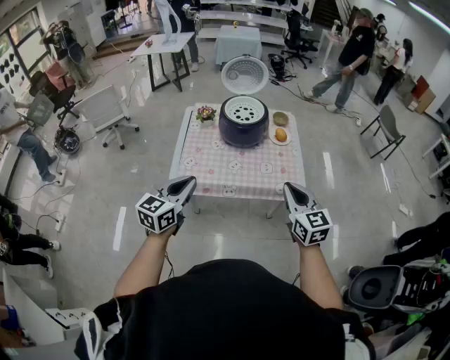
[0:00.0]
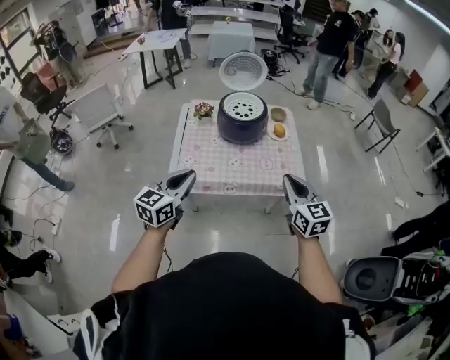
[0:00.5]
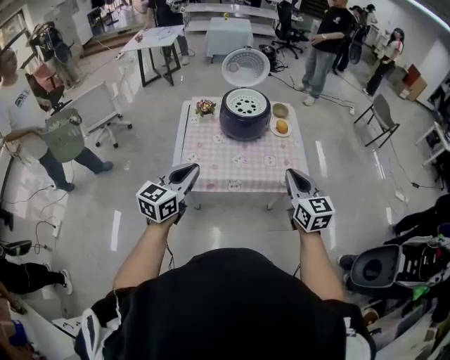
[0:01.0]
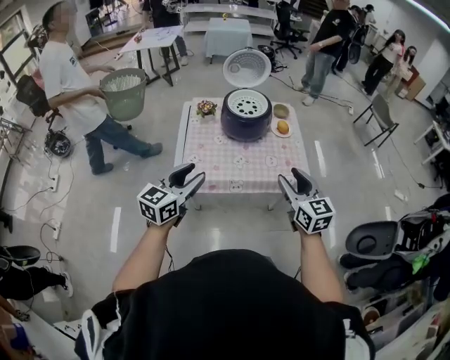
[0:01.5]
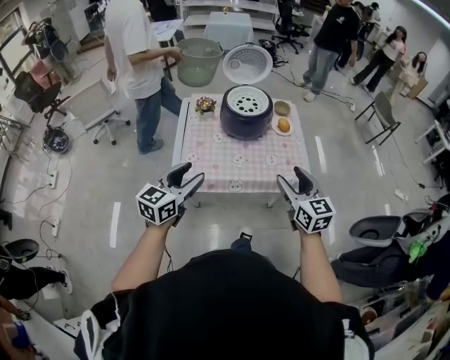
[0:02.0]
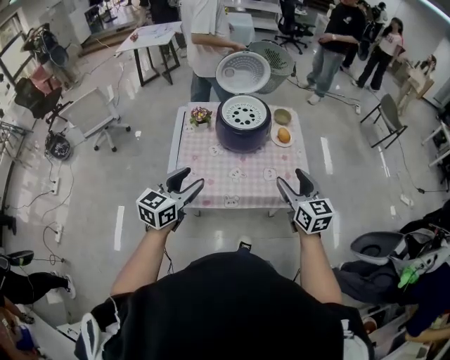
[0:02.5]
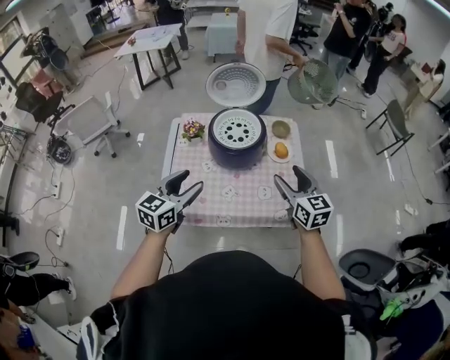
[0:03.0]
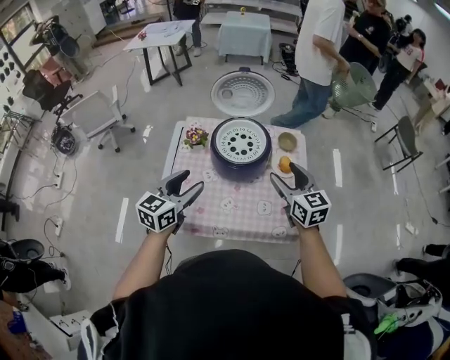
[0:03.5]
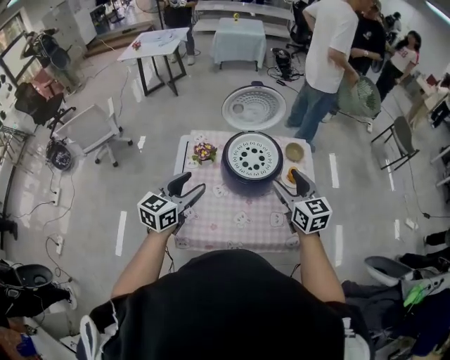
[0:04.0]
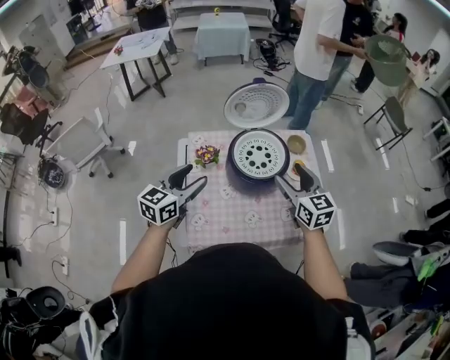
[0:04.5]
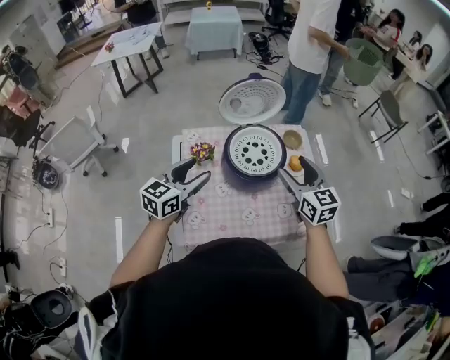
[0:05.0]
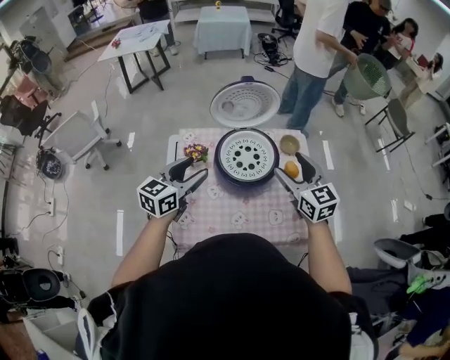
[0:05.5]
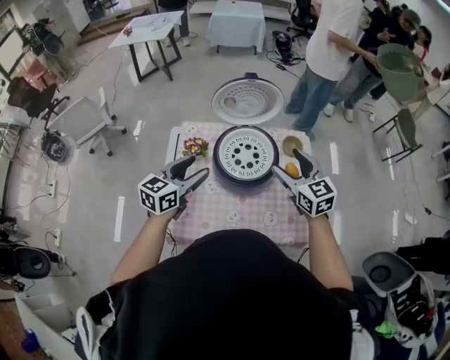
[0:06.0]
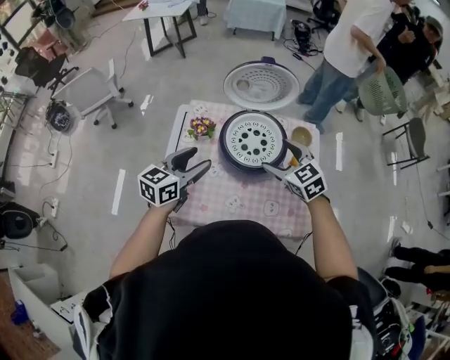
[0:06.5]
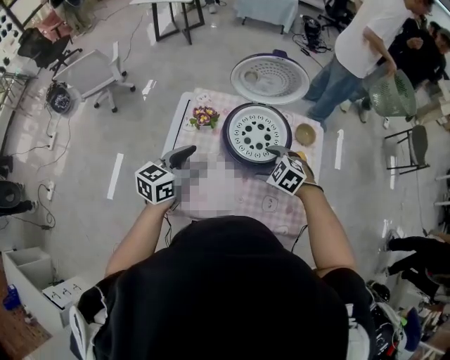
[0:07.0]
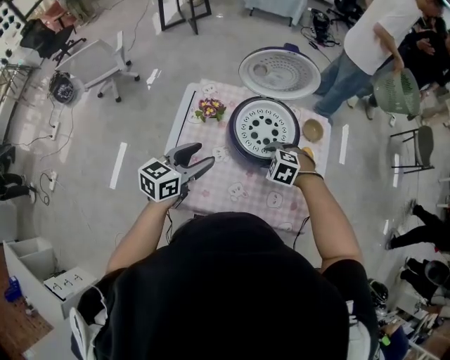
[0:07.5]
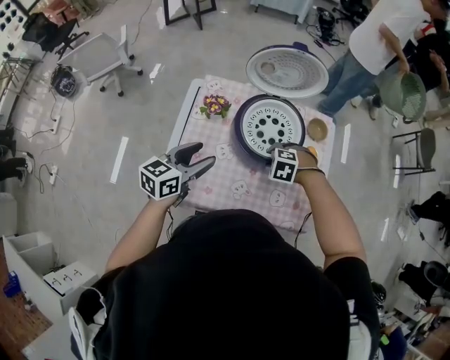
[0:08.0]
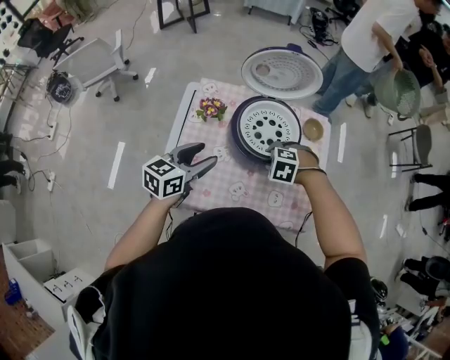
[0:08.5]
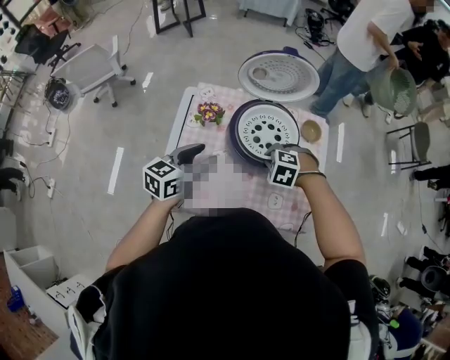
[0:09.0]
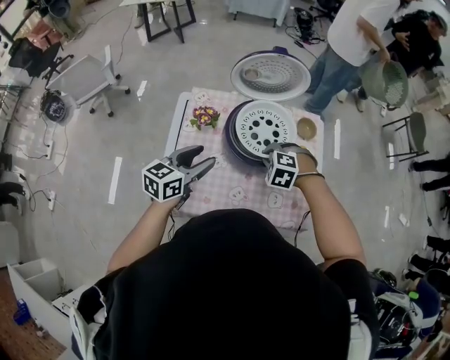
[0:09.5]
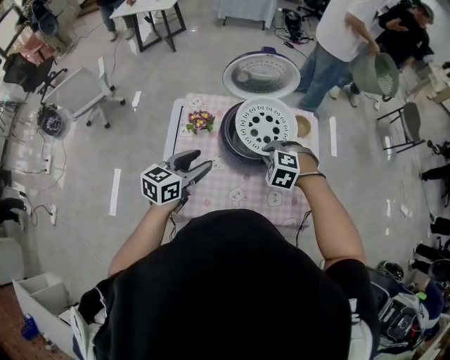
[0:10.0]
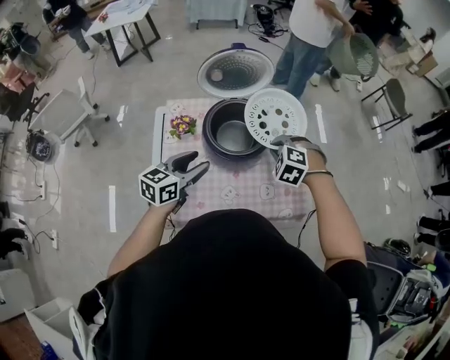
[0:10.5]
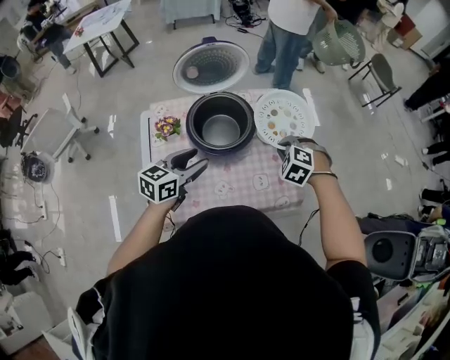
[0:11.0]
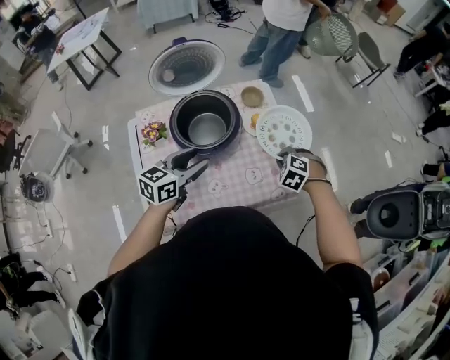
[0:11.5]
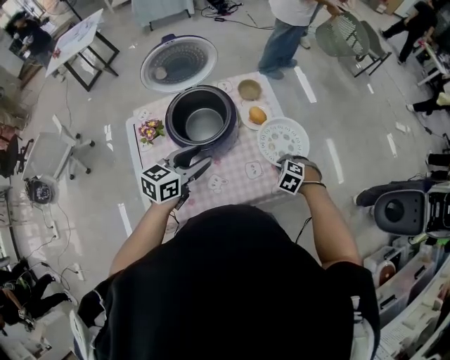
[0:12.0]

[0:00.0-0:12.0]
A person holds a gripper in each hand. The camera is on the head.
0:00.0 to 0:02.0: The two grippers go some 5 cm to the left. The right gripper opens. Meanwhile the left gripper opens up.
0:02.0 to 0:04.0: Both grippers travel together forward, approximately 30 cm.
0:04.0 to 0:06.0: The grippers both shift forward by roughly 10 cm.
0:06.0 to 0:08.0: The left gripper heads downward, covering approximately 5 cm, while the right gripper shifts approximately 25 cm downward, angles its fingers downward, by roughly 60 degrees, and closes up.
0:08.0 to 0:10.0: The right gripper shifts roughly 10 cm upward, and closes its fingers.
0:10.0 to 0:12.0: The left gripper ends up some 15 cm from where it was, and rotates approximately 20 degrees; the right gripper changes place by about 30 cm, and changes its angle by some 30 degrees.

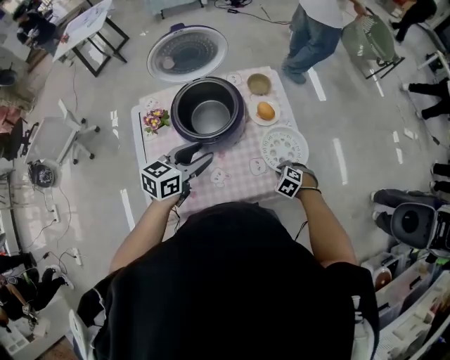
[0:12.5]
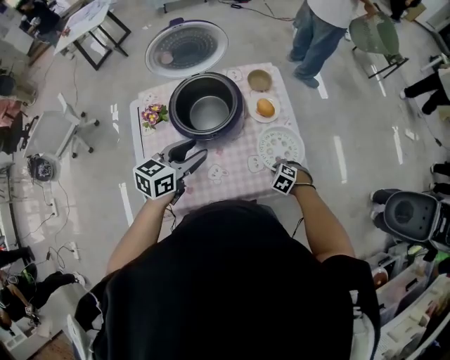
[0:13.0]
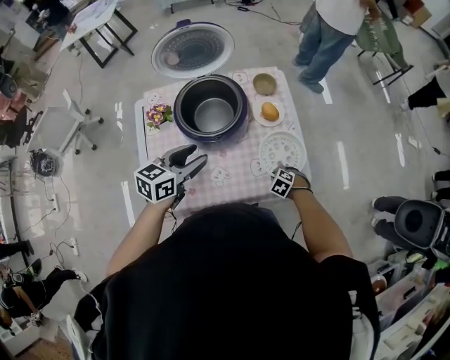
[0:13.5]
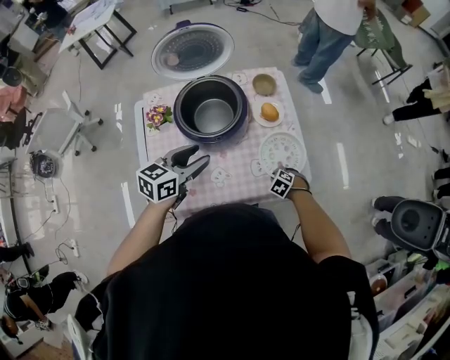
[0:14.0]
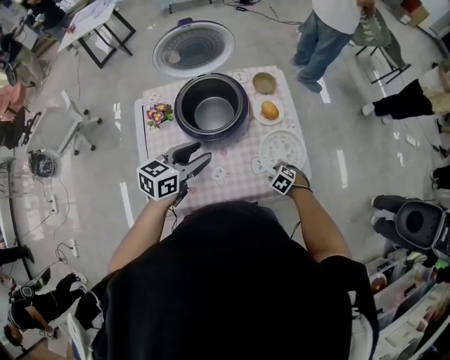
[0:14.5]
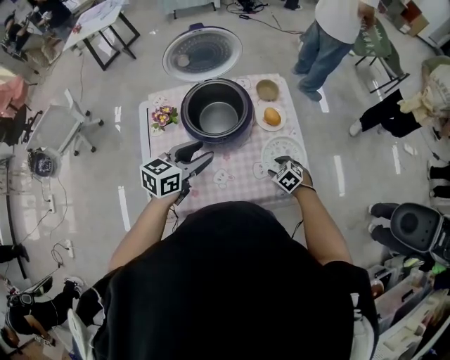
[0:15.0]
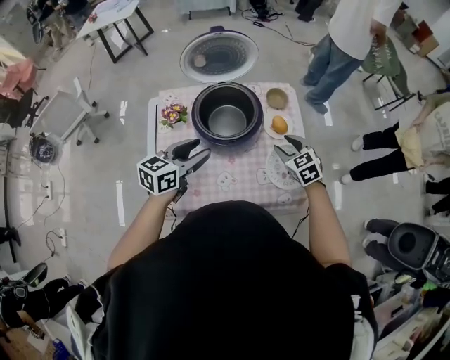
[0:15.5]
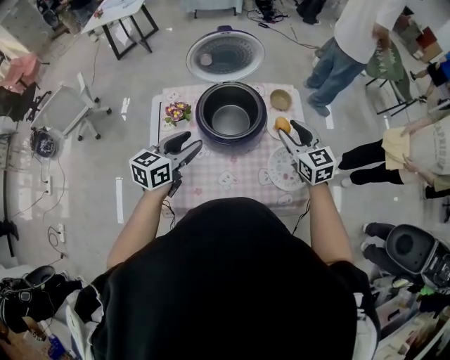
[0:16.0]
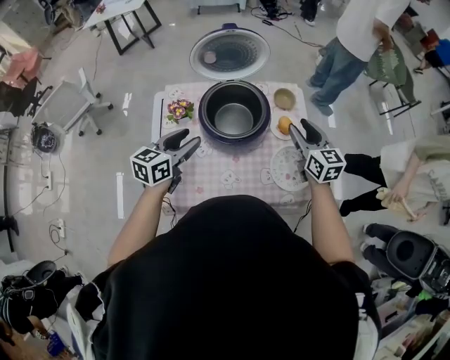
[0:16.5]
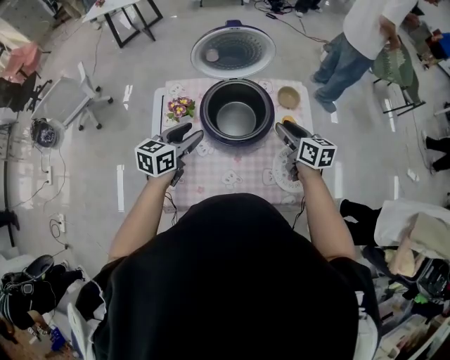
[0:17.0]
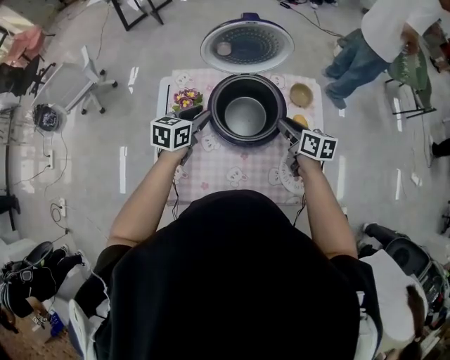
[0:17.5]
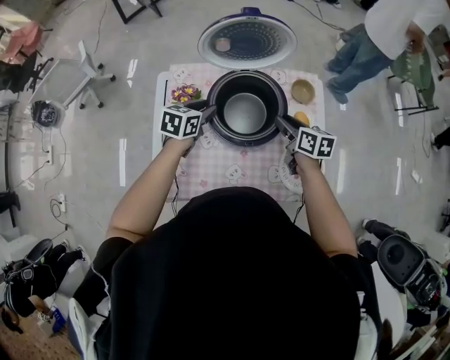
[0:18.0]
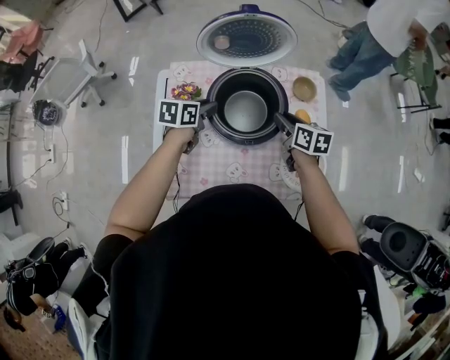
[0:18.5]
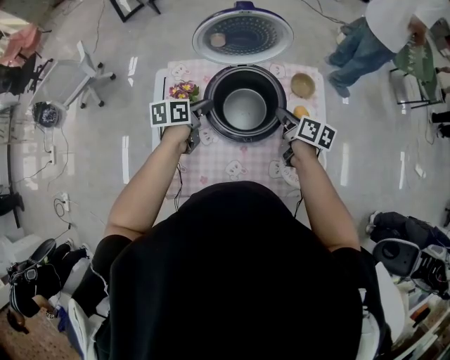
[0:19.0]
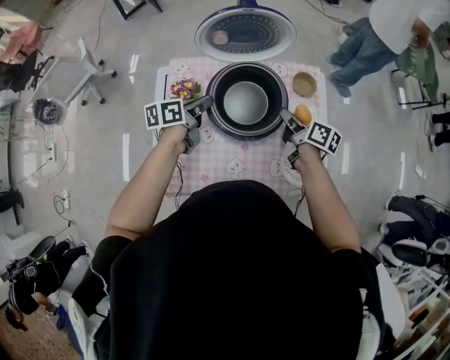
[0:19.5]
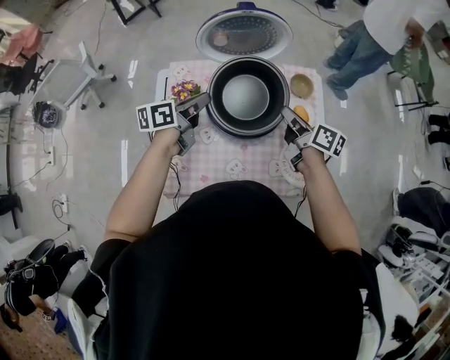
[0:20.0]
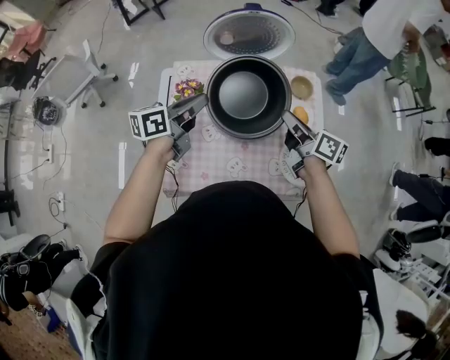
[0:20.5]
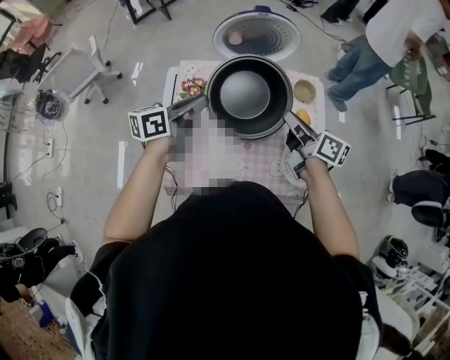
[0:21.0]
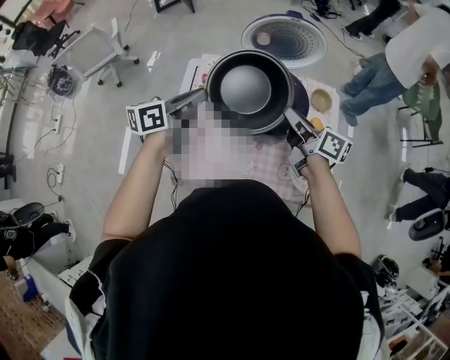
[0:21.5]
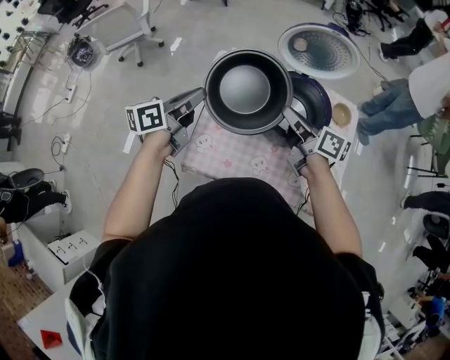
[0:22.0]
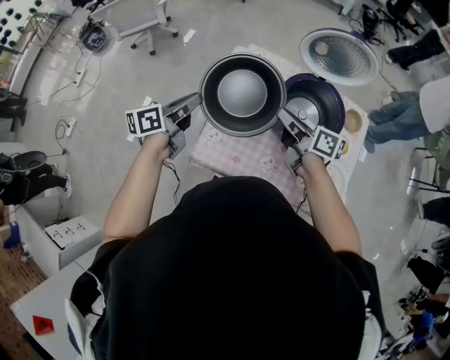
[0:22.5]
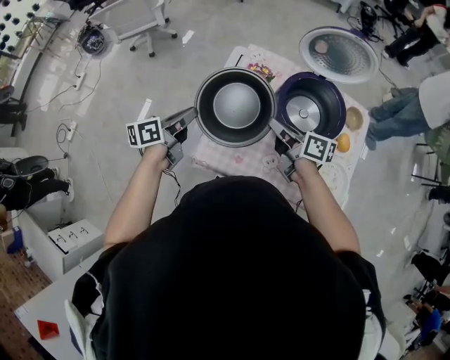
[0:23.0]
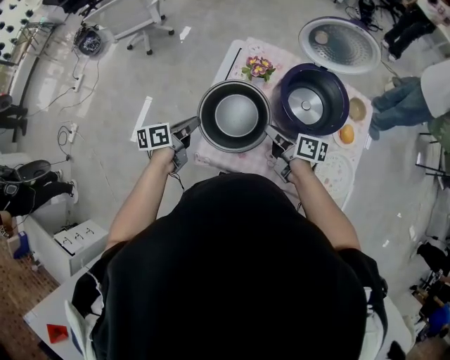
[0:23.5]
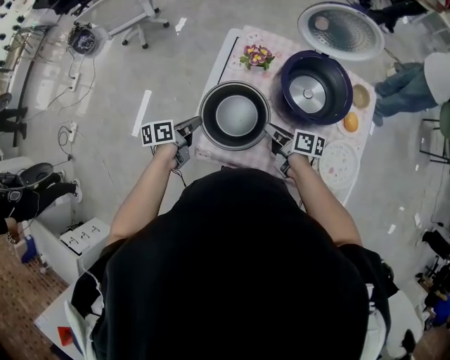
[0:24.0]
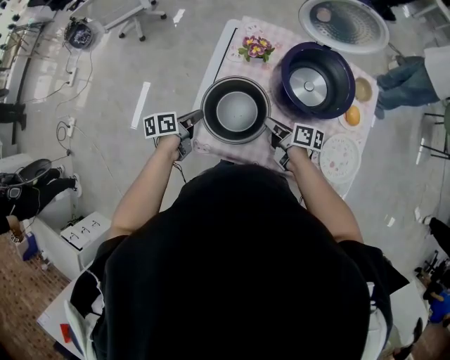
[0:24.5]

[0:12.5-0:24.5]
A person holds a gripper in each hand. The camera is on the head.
0:12.5 to 0:14.5: The right gripper shifts about 5 cm downward, and opens its fingers.
0:14.5 to 0:16.5: The left gripper ends up approximately 10 cm from where it was, while the right gripper travels upward by some 35 cm, and angles its fingers upward, by roughly 60 degrees.
0:16.5 to 0:18.5: The left gripper shifts about 20 cm forward and downward, swivels some 30 degrees, and closes its fingers. Meanwhile the right gripper goes about 15 cm downward, to the left and forward, and rotates roughly 30 degrees.
0:18.5 to 0:20.5: The right gripper heads upward, covering about 10 cm, and turns by about 30 degrees, while the left gripper heads upward and backward, covering approximately 15 cm, and rotates approximately 30 degrees.
0:20.5 to 0:22.5: The right gripper changes place by approximately 25 cm, and changes its angle by roughly 30 degrees. The left gripper changes place by about 25 cm, and rotates roughly 20 degrees.
0:22.5 to 0:24.5: The grippers both shift downward by some 20 cm. The left gripper turns by roughly 30 degrees; the right gripper swivels approximately 30 degrees.

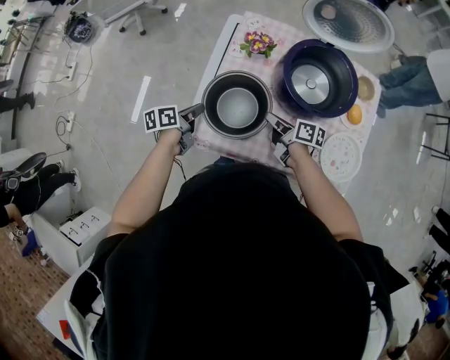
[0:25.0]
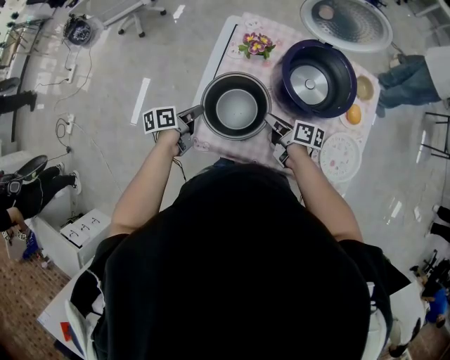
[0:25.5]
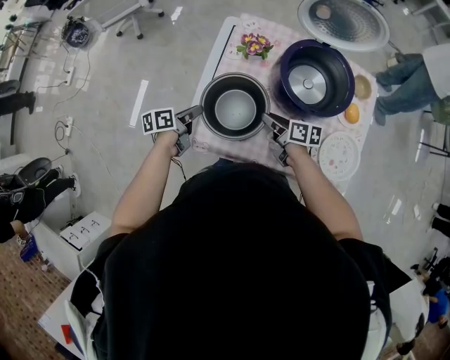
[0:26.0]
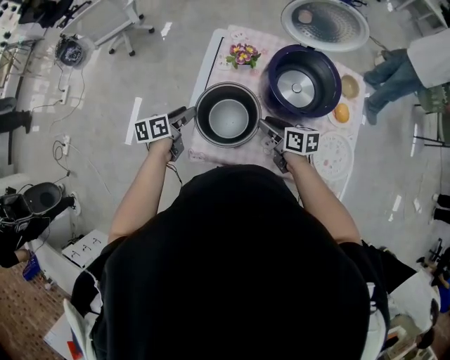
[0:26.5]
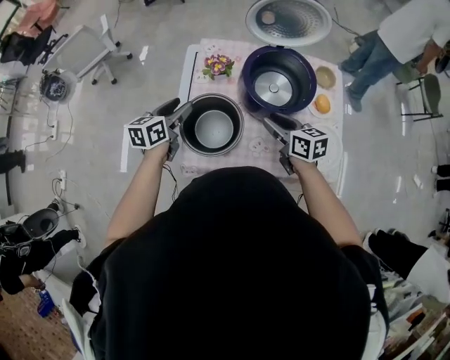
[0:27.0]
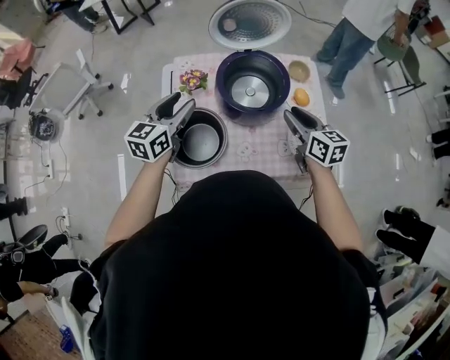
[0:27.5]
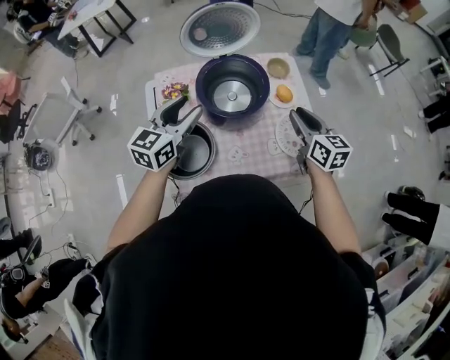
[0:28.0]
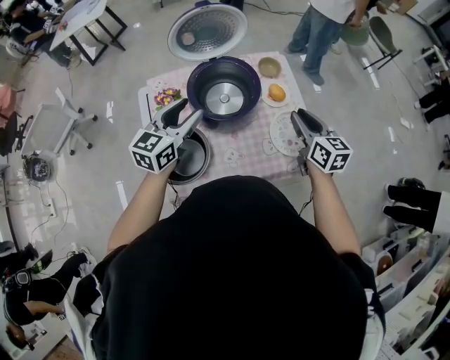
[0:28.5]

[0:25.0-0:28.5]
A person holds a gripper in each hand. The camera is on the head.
0:25.0 to 0:27.0: The right gripper goes about 15 cm upward and to the right, and turns by approximately 40 degrees. The left gripper goes approximately 15 cm upward, forward and to the right, swivels approximately 40 degrees, and opens.
0:27.0 to 0:28.5: The right gripper shifts by approximately 25 cm, and turns by roughly 40 degrees. The left gripper moves approximately 25 cm, and rotates some 40 degrees.
